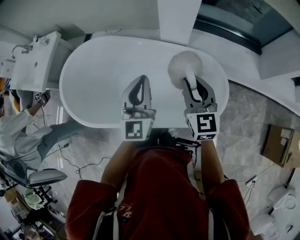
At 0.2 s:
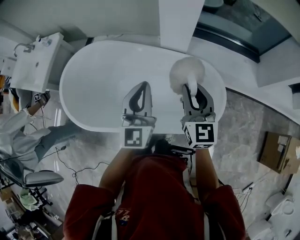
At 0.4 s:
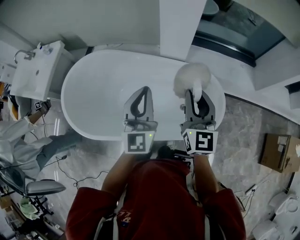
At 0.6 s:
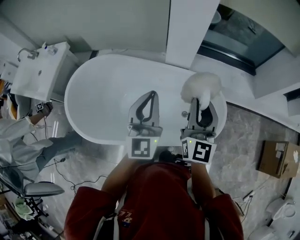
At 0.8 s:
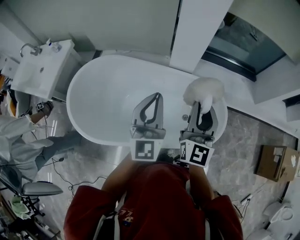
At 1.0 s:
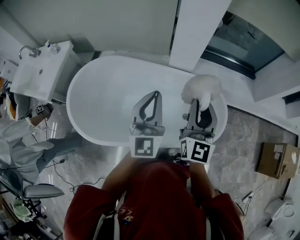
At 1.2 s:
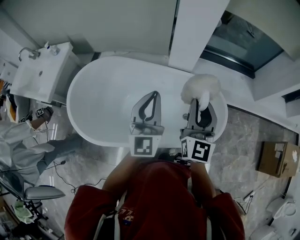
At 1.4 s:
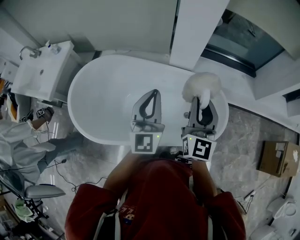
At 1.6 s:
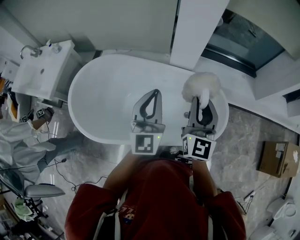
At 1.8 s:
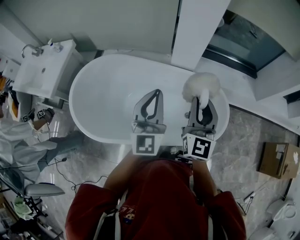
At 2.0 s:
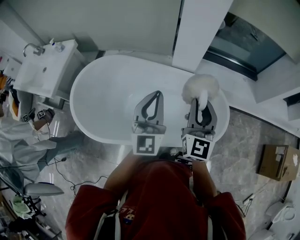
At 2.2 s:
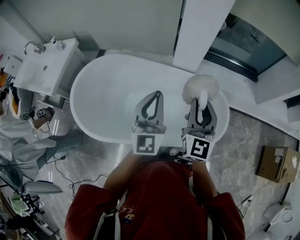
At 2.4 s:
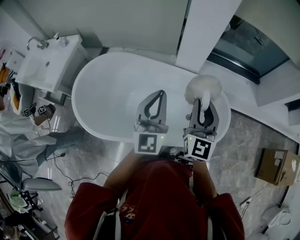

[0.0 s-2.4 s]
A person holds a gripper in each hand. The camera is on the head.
0.0 to 1.2 s: The right gripper shifts roughly 10 cm upward and to the left, and rotates about 30 degrees; the left gripper shifts roughly 10 cm to the left and upward.
1.2 to 2.4 s: The grippers make only small movements.

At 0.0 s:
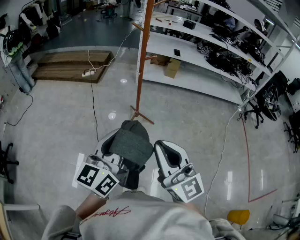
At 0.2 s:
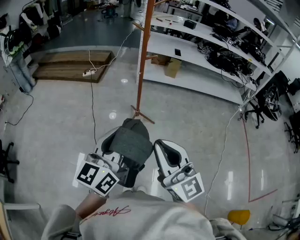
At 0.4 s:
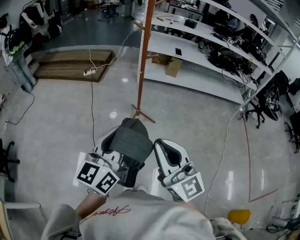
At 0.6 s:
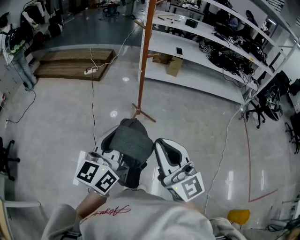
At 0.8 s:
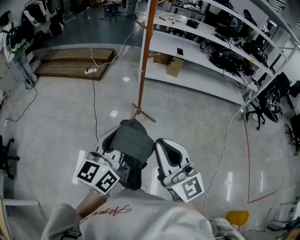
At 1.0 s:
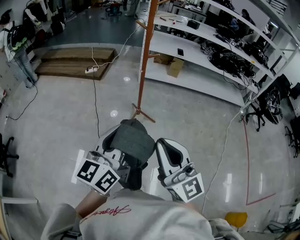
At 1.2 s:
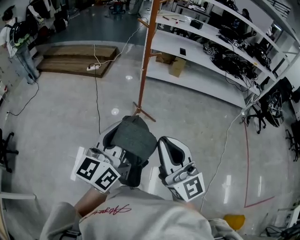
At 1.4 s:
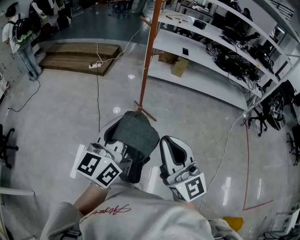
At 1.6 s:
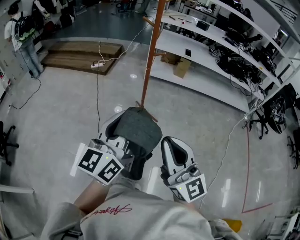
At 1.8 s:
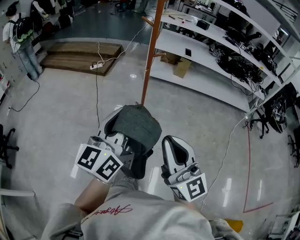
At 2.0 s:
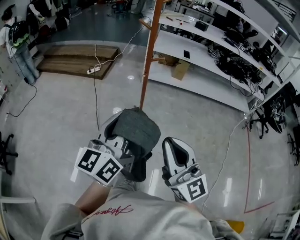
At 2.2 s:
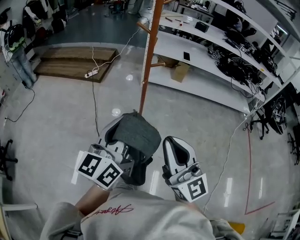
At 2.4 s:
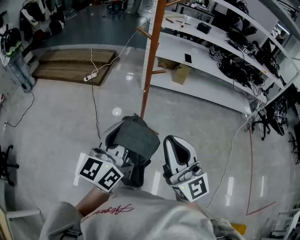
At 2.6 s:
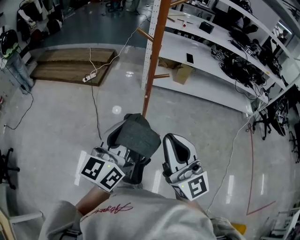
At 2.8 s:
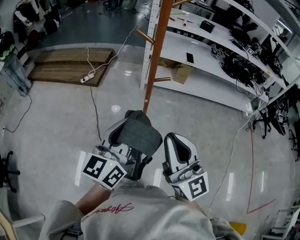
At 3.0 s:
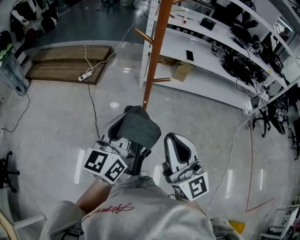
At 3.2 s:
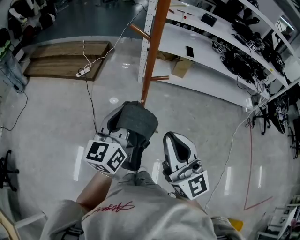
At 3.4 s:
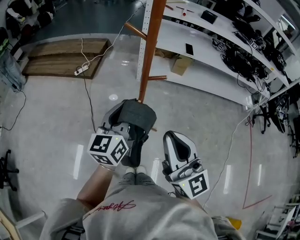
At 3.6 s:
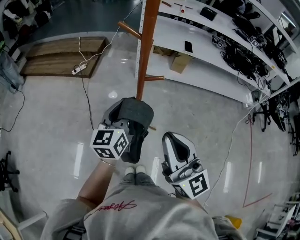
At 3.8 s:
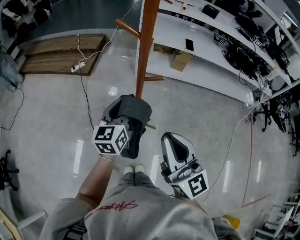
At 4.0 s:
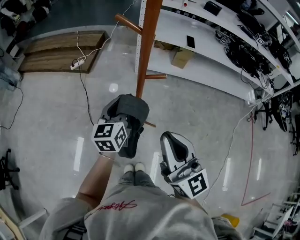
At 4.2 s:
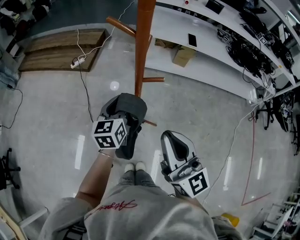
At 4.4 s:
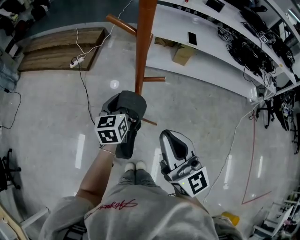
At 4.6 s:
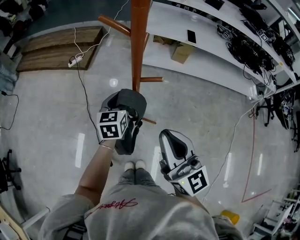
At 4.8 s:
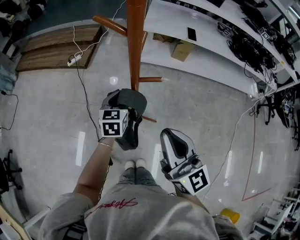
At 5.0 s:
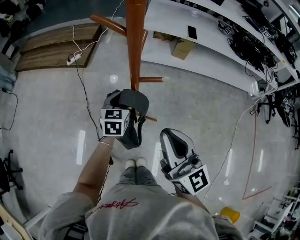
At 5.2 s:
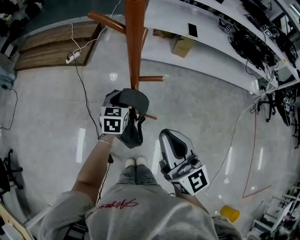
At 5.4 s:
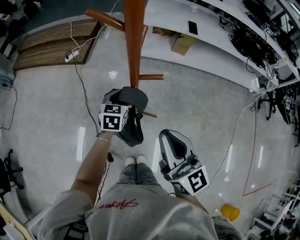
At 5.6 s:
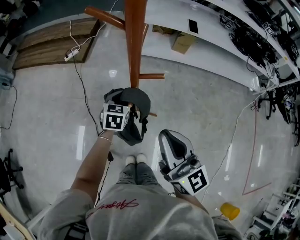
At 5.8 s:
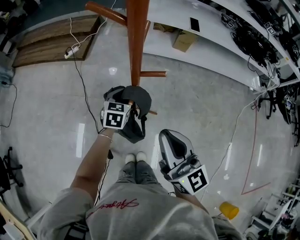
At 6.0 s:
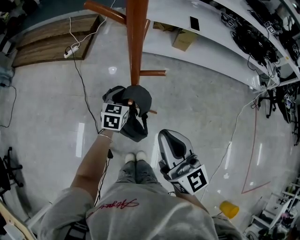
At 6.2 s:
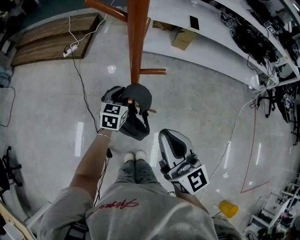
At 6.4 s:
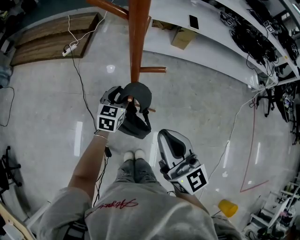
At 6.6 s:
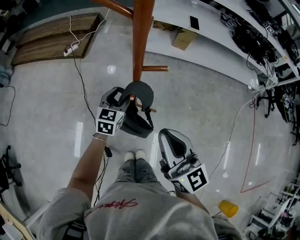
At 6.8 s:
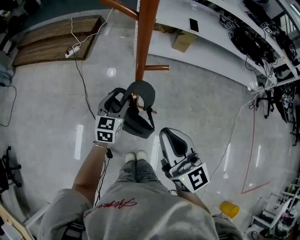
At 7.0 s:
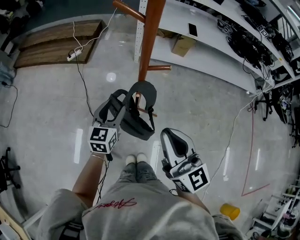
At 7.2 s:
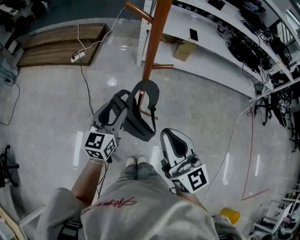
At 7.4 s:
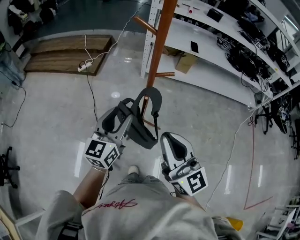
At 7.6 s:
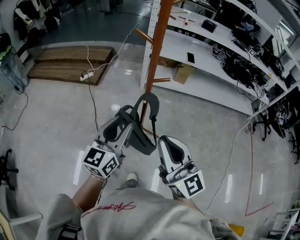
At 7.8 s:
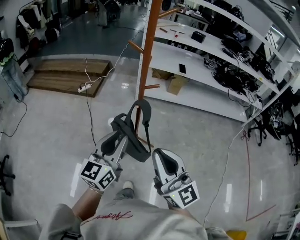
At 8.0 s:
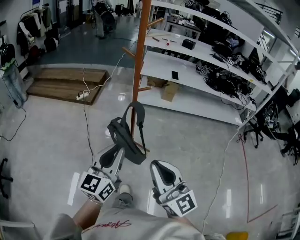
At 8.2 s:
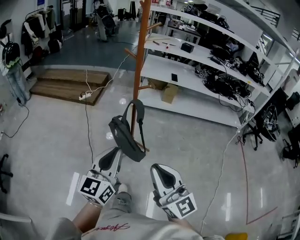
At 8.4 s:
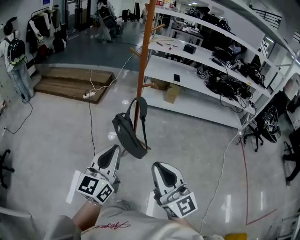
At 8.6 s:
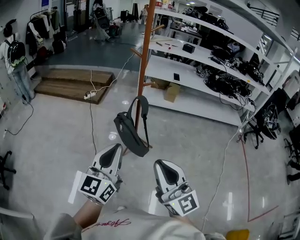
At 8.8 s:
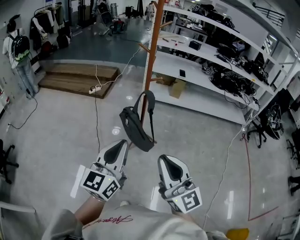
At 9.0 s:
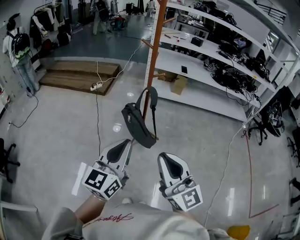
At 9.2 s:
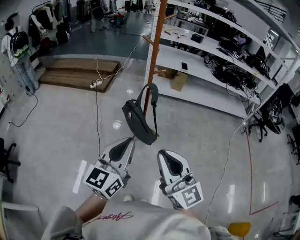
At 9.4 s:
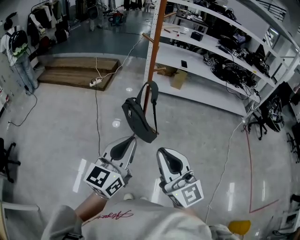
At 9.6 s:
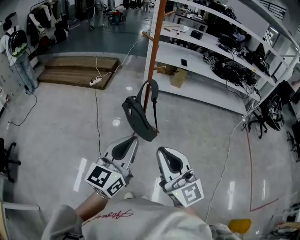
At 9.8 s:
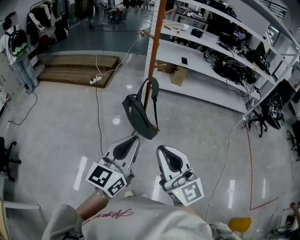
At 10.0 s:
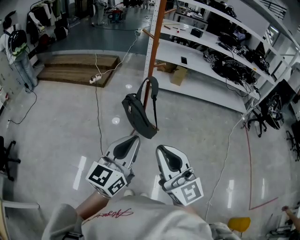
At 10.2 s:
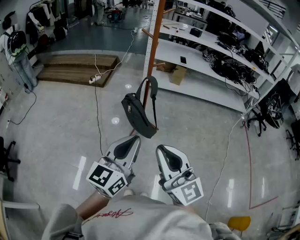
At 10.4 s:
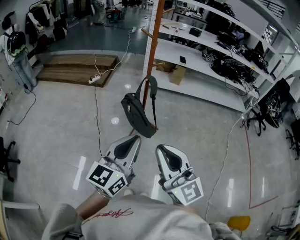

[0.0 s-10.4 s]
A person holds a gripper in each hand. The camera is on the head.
0.0 to 1.4 s: The grippers stay close to where they were, moving slightly.
1.4 to 3.0 s: Both grippers travel together forward, about 30 cm.
3.0 to 4.4 s: The left gripper shifts roughly 25 cm forward and downward, and turns by about 30 degrees; the right gripper travels forward, downward and to the right by about 15 cm.
4.4 to 6.0 s: The left gripper goes roughly 10 cm downward, and turns by approximately 20 degrees; the right gripper heads downward, covering some 5 cm.
6.0 to 7.4 s: The left gripper travels upward and backward by approximately 25 cm, angles its fingers upward, by some 30 degrees, and opens up. Meanwhile the right gripper goes approximately 10 cm backward, upward and to the left.
7.4 to 9.0 s: The grippers both shift backward by about 35 cm. The left gripper closes its fingers.
9.0 to 10.4 s: The grippers stay close to where they were, moving slightly.

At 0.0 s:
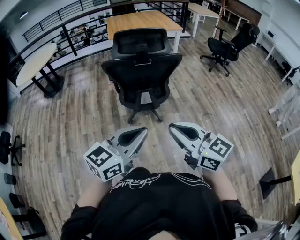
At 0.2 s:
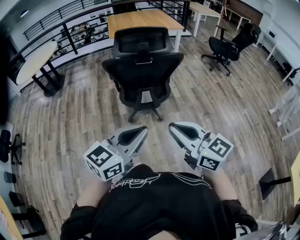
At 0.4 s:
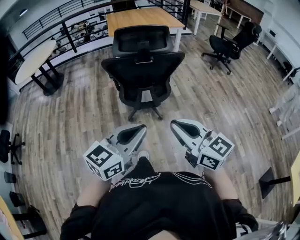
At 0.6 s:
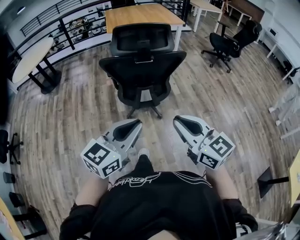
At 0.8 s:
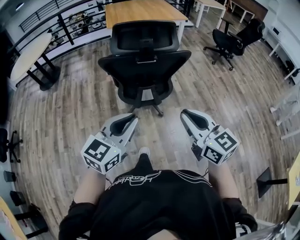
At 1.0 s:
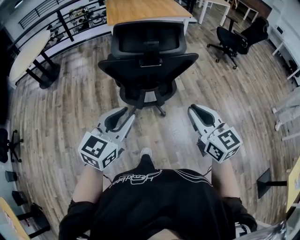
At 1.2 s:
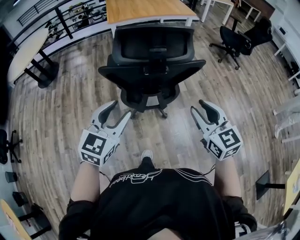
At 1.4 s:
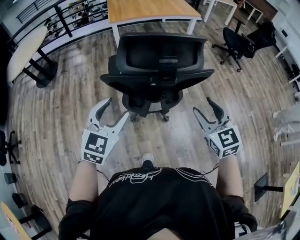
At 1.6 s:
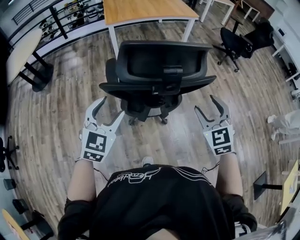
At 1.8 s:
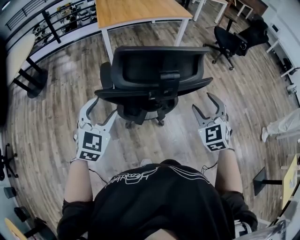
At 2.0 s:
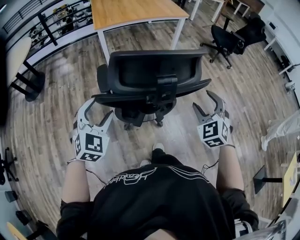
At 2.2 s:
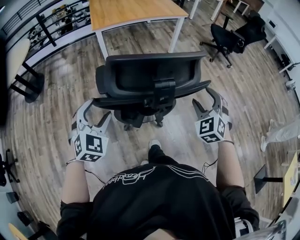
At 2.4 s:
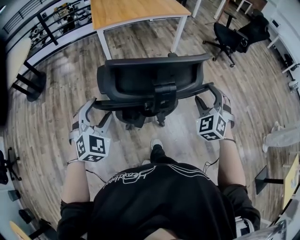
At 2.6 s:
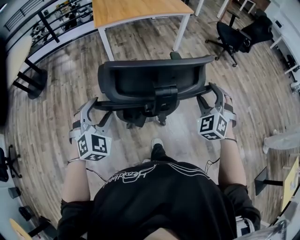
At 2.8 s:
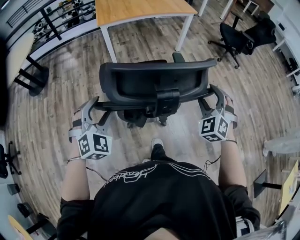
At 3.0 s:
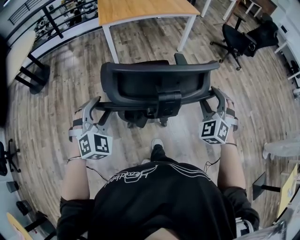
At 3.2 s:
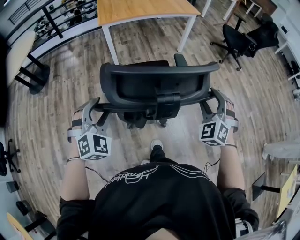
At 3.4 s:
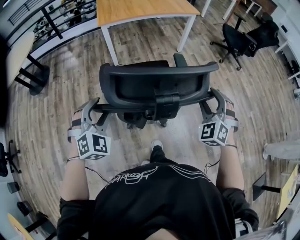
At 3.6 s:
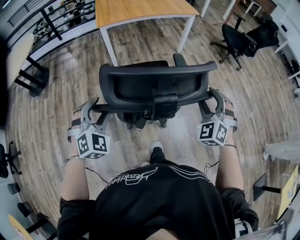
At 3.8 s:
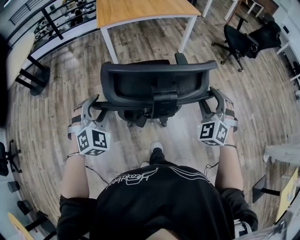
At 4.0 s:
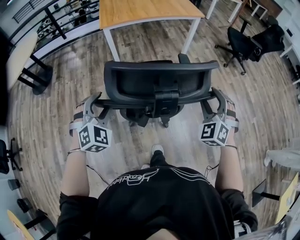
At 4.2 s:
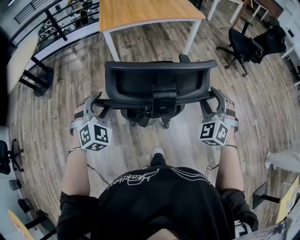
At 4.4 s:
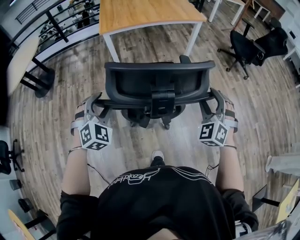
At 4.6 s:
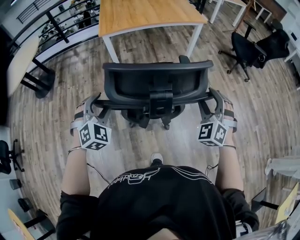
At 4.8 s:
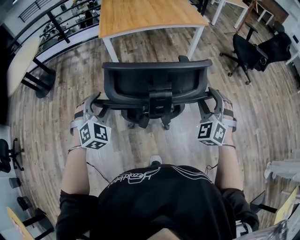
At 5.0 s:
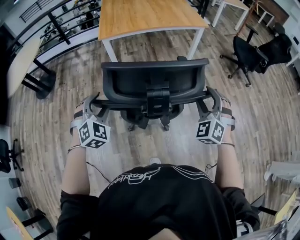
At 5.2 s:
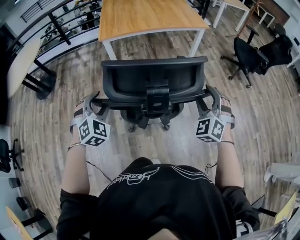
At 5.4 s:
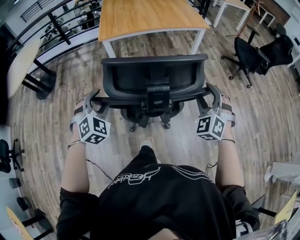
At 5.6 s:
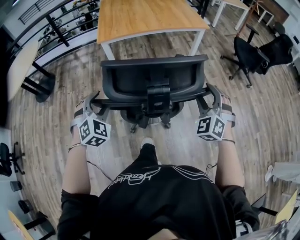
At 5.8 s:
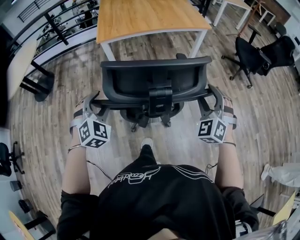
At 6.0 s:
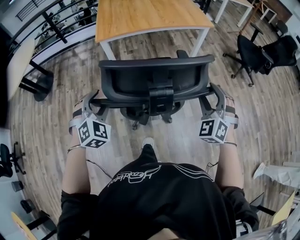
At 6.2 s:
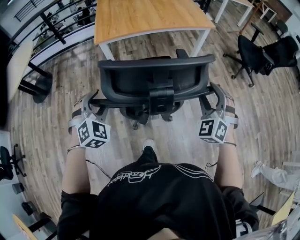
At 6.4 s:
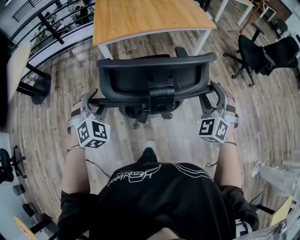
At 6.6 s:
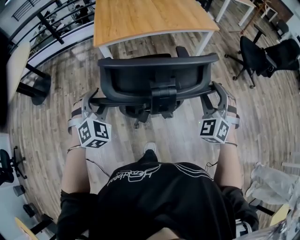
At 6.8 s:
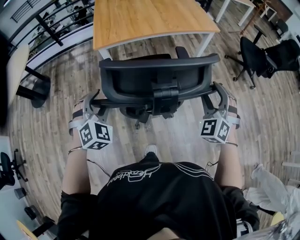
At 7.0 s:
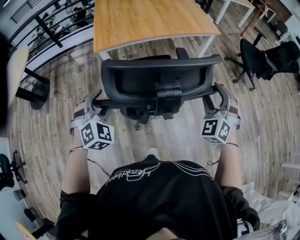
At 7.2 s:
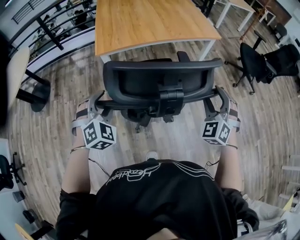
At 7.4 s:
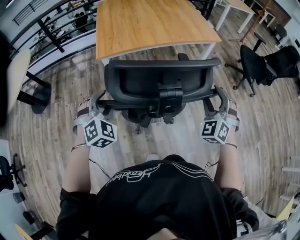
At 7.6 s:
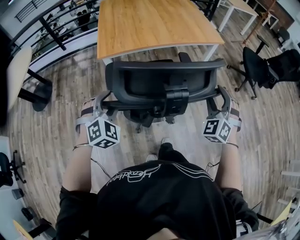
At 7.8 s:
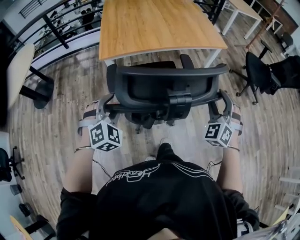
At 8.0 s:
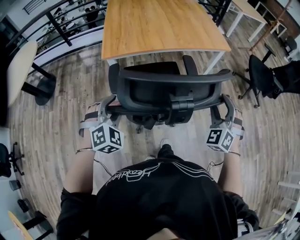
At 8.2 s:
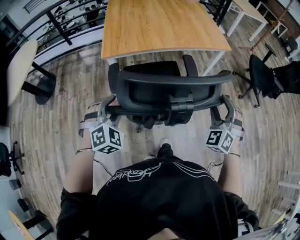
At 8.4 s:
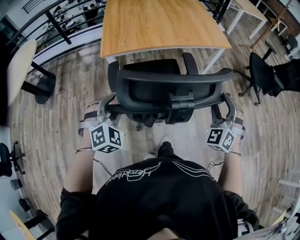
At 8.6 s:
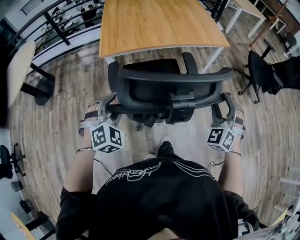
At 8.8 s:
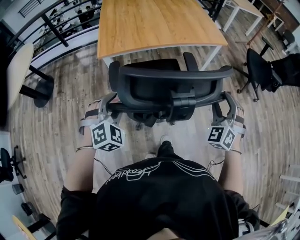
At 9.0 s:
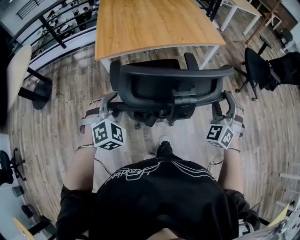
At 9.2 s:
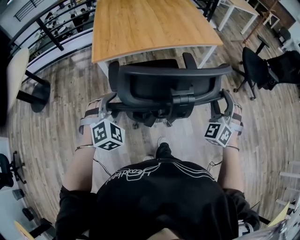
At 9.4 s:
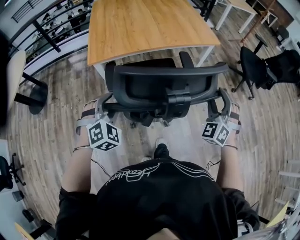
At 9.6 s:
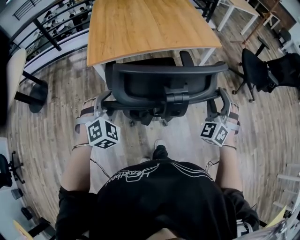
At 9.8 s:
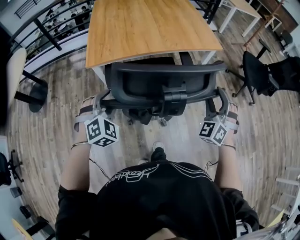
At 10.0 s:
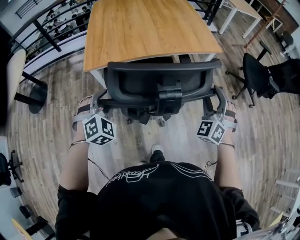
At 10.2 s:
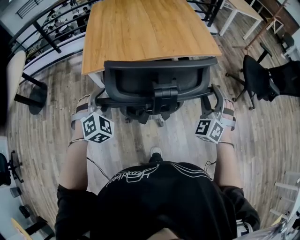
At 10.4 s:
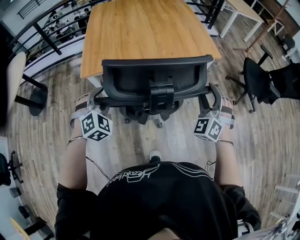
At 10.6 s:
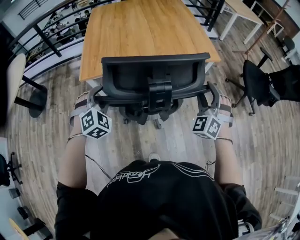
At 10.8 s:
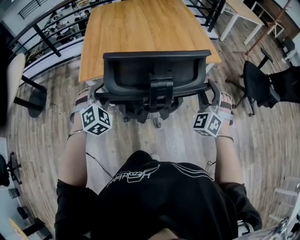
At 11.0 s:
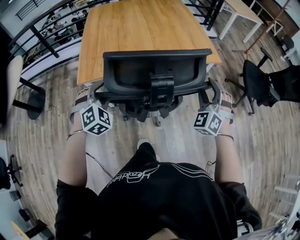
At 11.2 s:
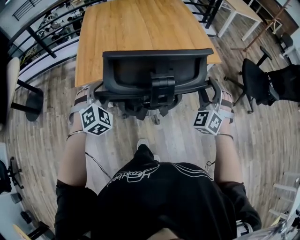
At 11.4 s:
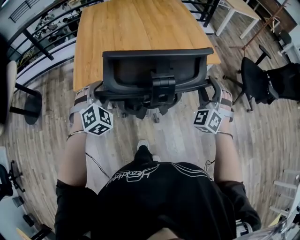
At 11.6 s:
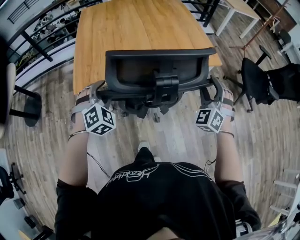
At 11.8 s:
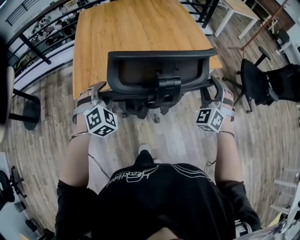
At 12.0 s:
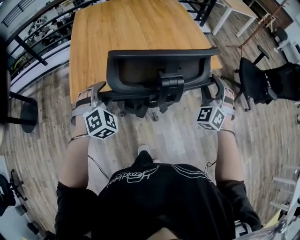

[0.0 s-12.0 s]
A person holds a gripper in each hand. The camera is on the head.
0.0 to 1.6 s: The left gripper travels forward and to the left by approximately 40 cm, turns by some 40 degrees, and opens up. The right gripper shifts some 40 cm forward, rotates some 60 degrees, and opens.
1.6 to 3.0 s: The grippers both shift forward by roughly 10 cm. The right gripper swivels about 30 degrees, while the left gripper turns by some 30 degrees.
3.0 to 4.4 s: Both grippers travel together forward, approximately 10 cm.
4.4 to 6.0 s: The grippers both shift forward by about 15 cm.
6.0 to 7.6 s: The grippers both shift forward by about 15 cm.
7.6 to 9.0 s: The grippers move only a little.
9.0 to 10.4 s: The two grippers go approximately 15 cm forward.
10.4 to 12.0 s: The two grippers go some 20 cm forward.
